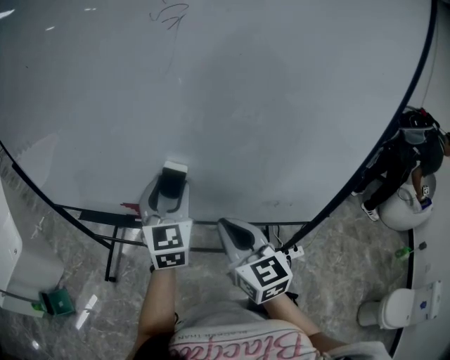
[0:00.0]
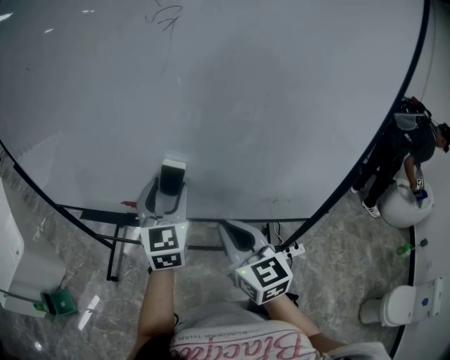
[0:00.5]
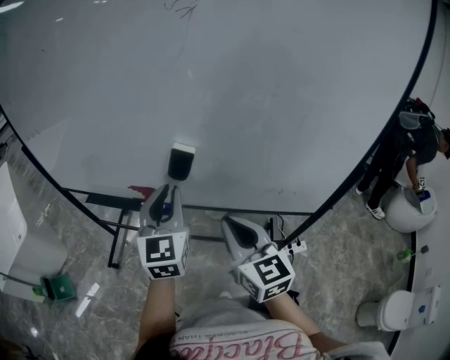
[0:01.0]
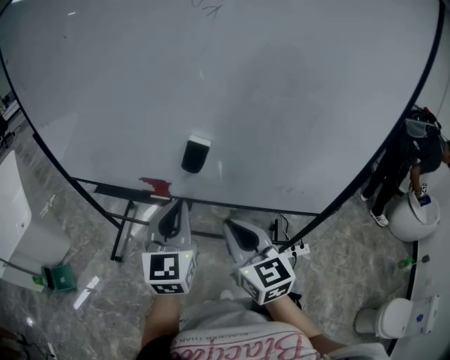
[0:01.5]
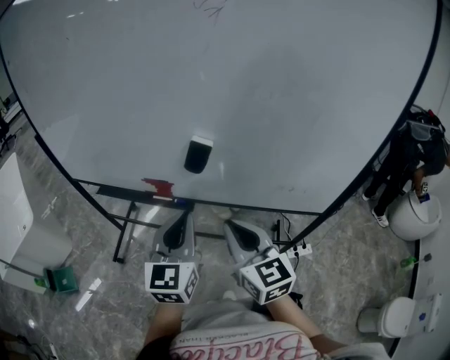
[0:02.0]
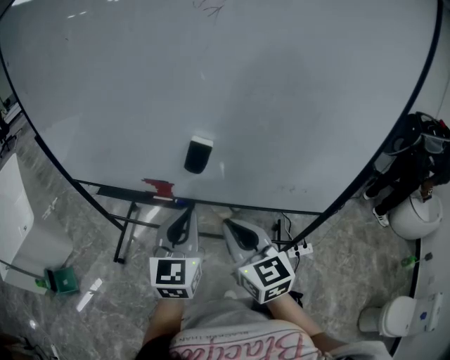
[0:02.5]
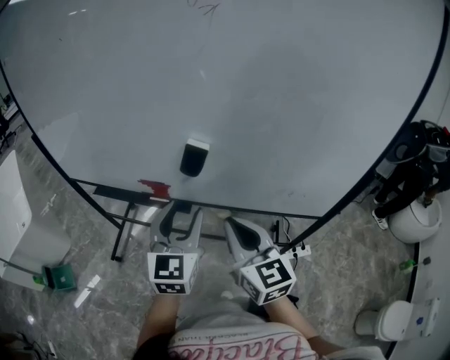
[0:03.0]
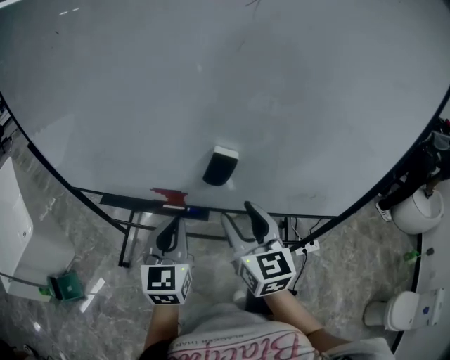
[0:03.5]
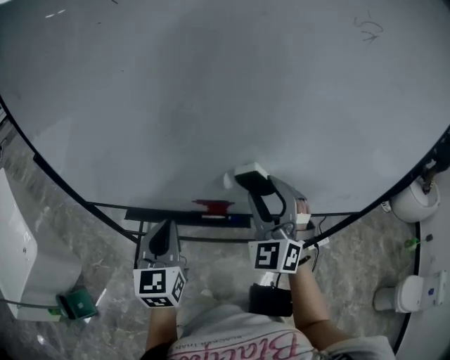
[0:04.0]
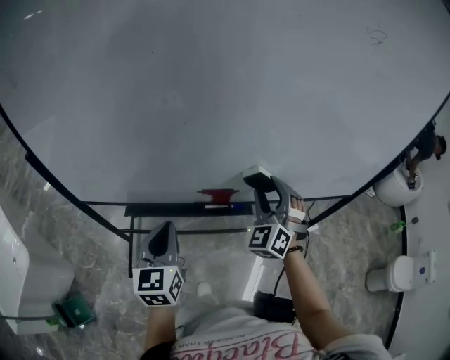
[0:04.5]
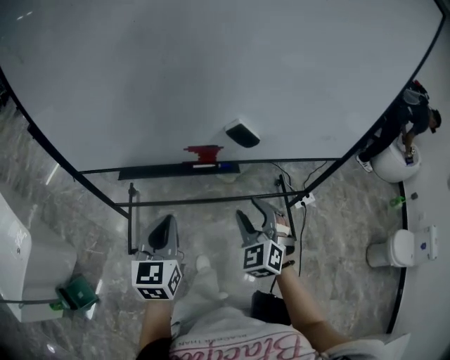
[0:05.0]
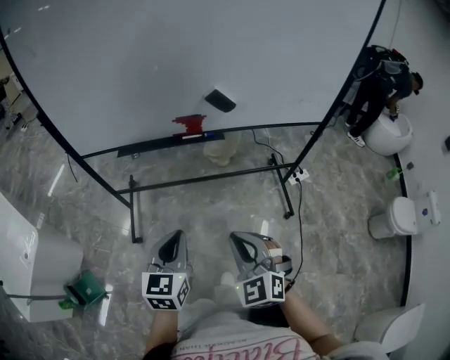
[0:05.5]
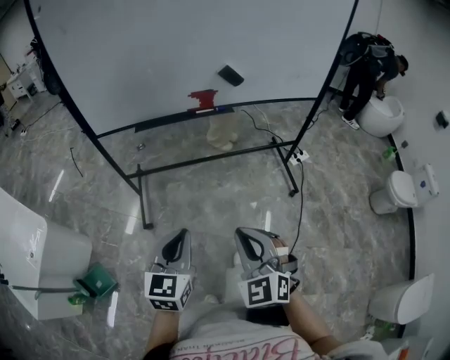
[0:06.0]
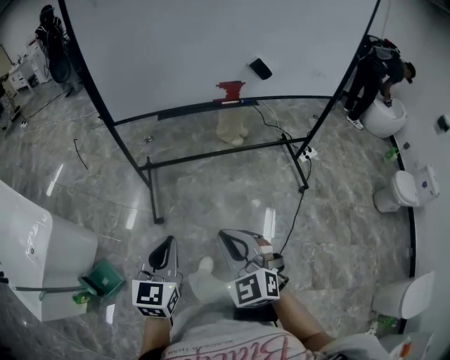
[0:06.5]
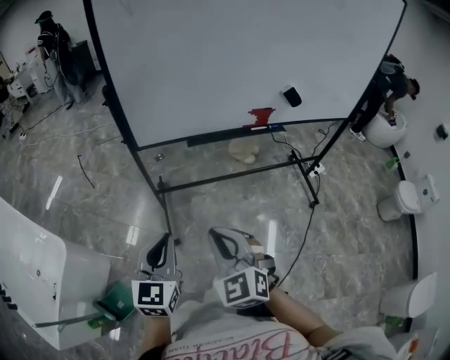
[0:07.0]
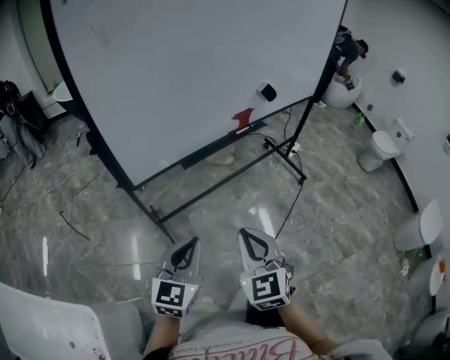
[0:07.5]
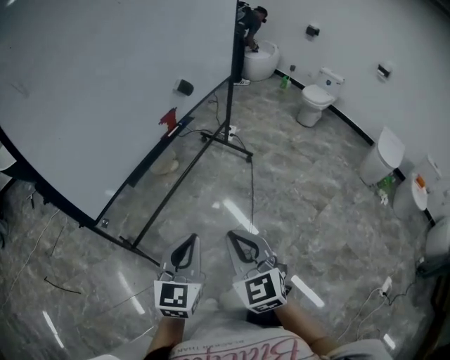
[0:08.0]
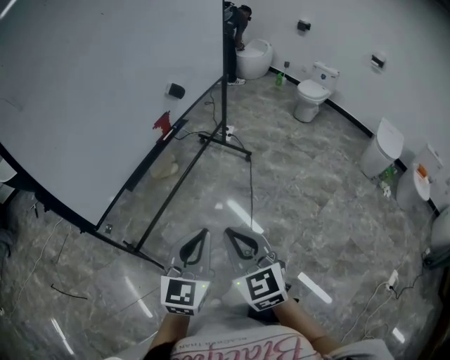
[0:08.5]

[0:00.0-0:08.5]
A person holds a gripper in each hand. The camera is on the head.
0:00.0 to 0:02.0: The right gripper ends up some 5 cm from where it was; the left gripper goes roughly 15 cm backward, and closes its fingers.
0:02.0 to 0:04.0: The right gripper heads forward and to the left, covering some 15 cm, twists approximately 50 degrees counterclockwise, seen from behind, and opens its fingers, while the left gripper shifts some 25 cm to the left and forward, and opens and closes again.
0:04.0 to 0:06.5: The pair of grippers is taken backward and to the left, about 50 cm. The left gripper turns by approximately 20 degrees. Meanwhile the right gripper changes its angle by roughly 30 degrees, and closes.
0:06.5 to 0:08.5: The left gripper changes its angle by some 60 degrees. Meanwhile the right gripper moves approximately 15 cm, and swivels some 60 degrees.

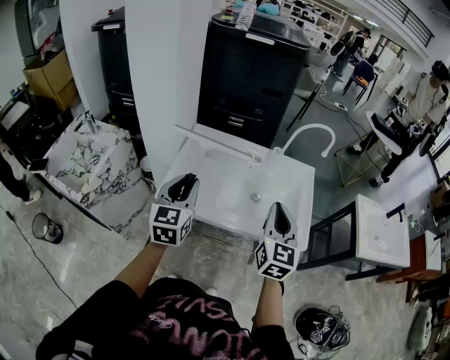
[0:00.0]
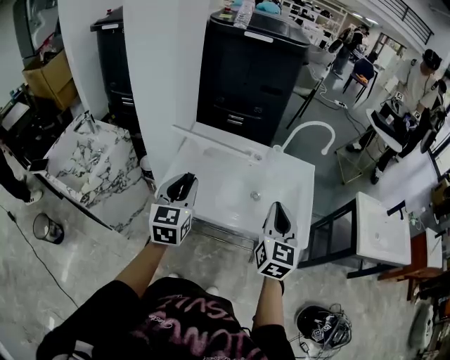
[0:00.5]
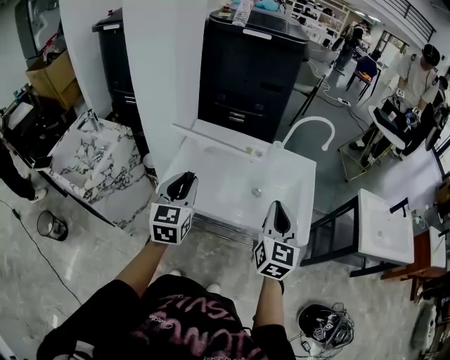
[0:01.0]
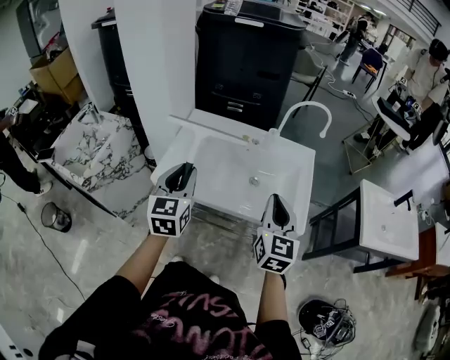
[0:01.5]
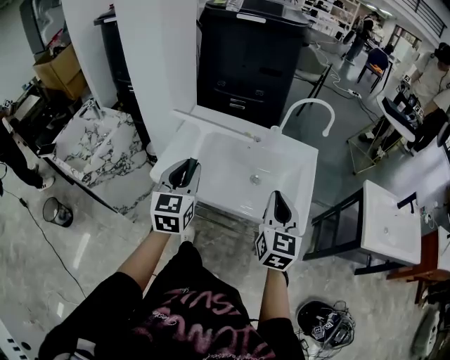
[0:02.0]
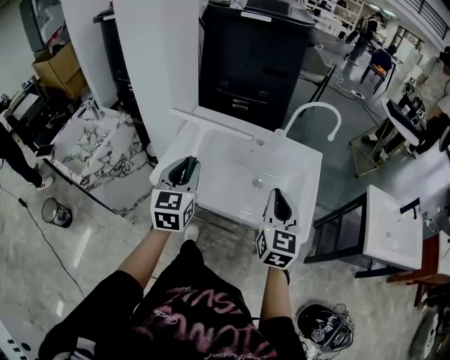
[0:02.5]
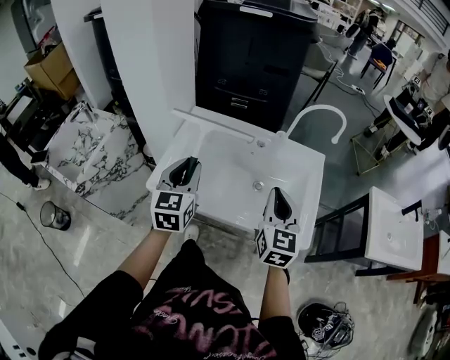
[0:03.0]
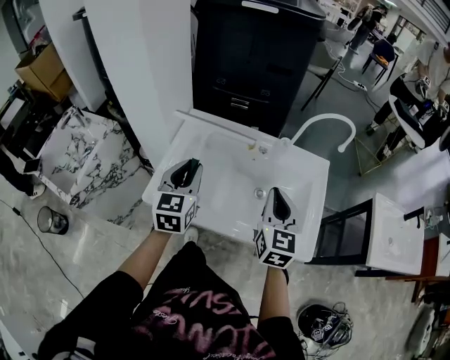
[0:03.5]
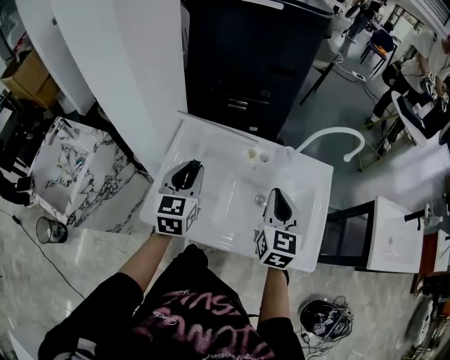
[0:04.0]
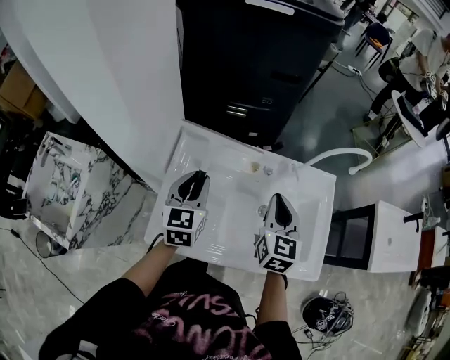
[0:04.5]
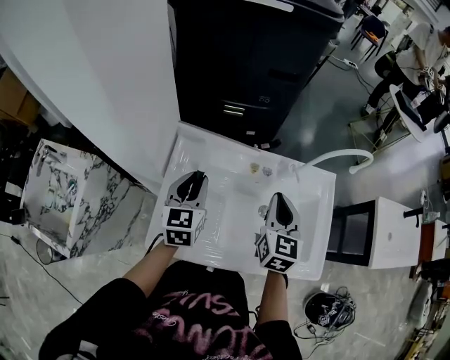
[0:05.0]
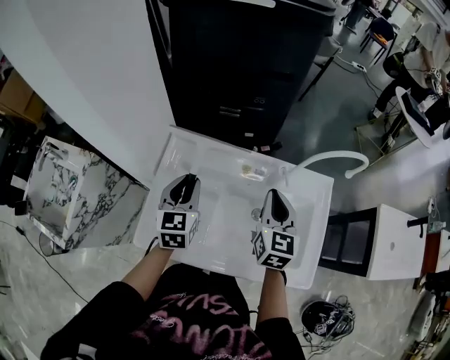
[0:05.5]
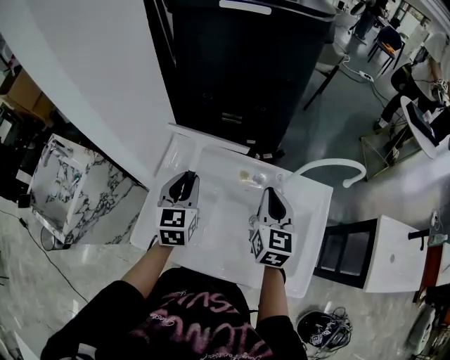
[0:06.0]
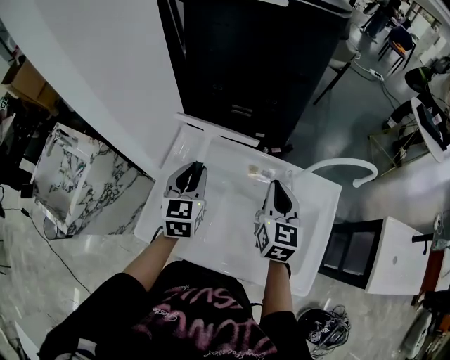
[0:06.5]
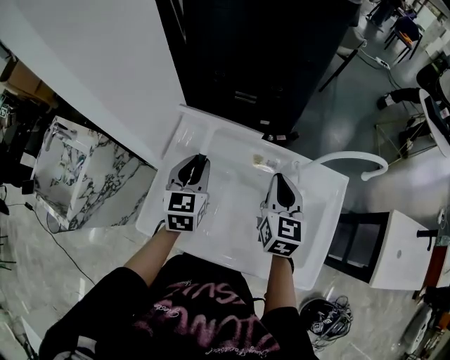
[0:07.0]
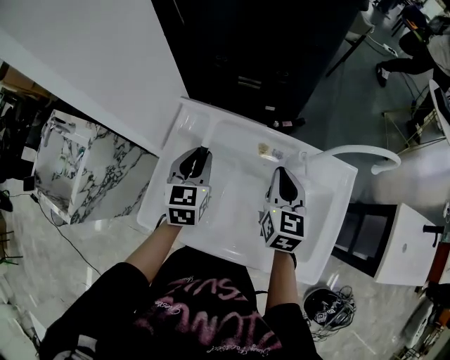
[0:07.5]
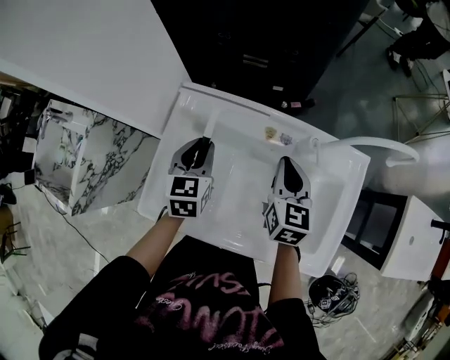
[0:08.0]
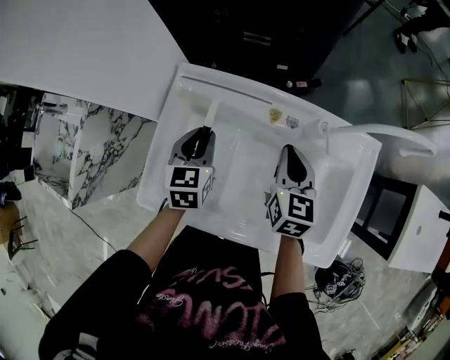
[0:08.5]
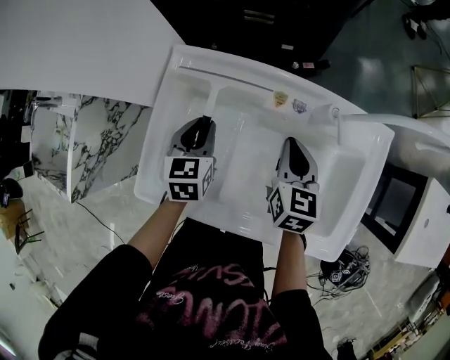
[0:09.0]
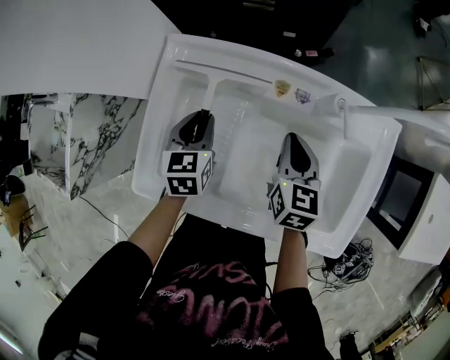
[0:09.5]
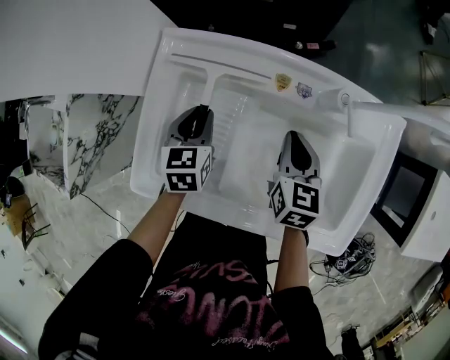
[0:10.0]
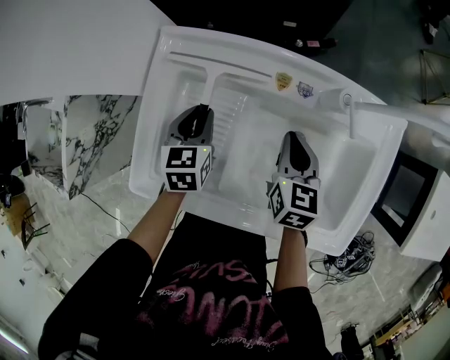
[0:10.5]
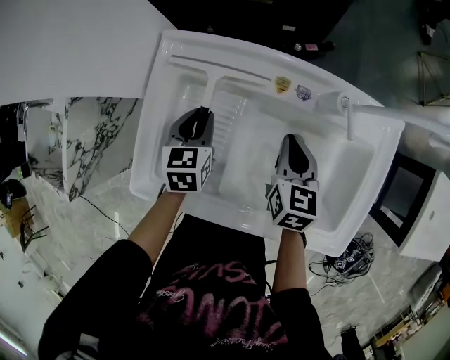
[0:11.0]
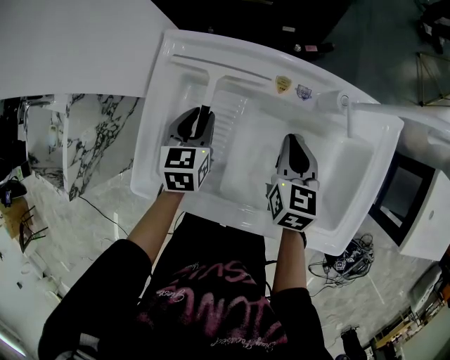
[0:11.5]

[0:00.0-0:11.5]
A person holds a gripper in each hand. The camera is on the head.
0:00.0 to 0:02.0: Both grippers move to the right, about 5 cm.
0:02.0 to 0:04.0: Both grippers travel together forward, about 20 cm.
0:04.0 to 0:06.0: The two grippers go some 10 cm forward.
0:06.0 to 0:07.5: The grippers both shift downward by about 5 cm.
0:07.5 to 0:09.5: Both grippers travel together downward, about 15 cm.
0:09.5 to 0:11.5: There are only small adjustments of the grippers.

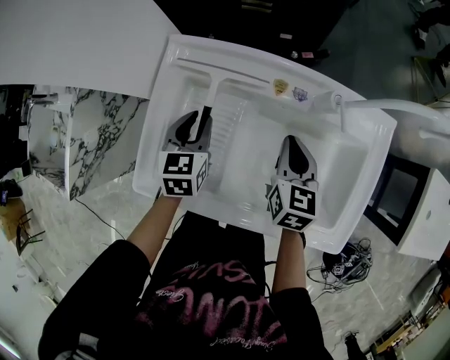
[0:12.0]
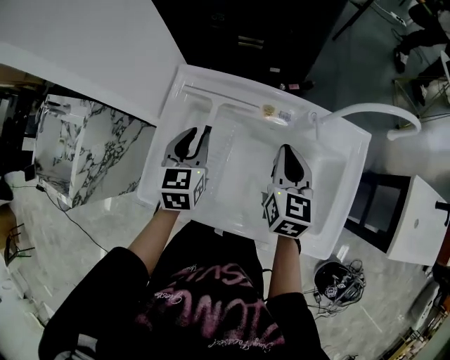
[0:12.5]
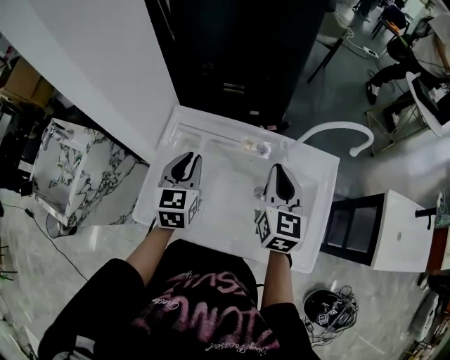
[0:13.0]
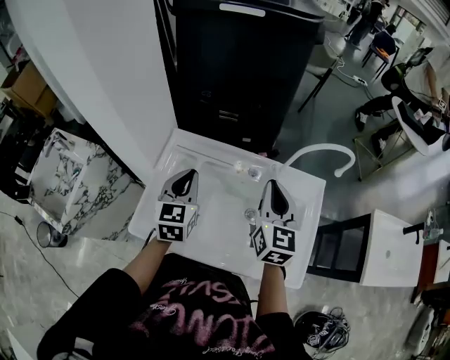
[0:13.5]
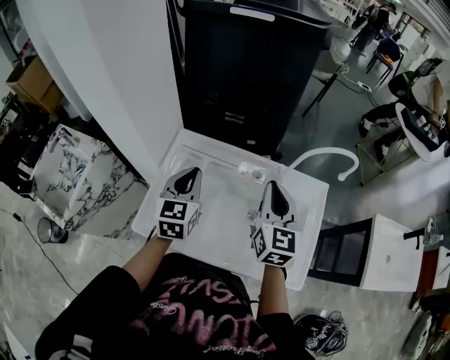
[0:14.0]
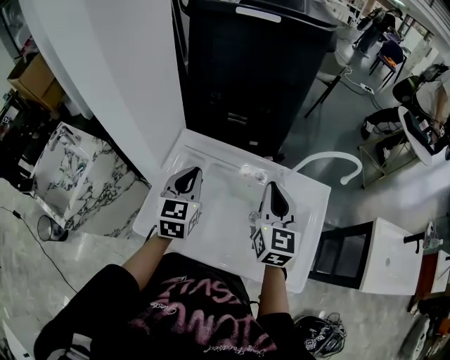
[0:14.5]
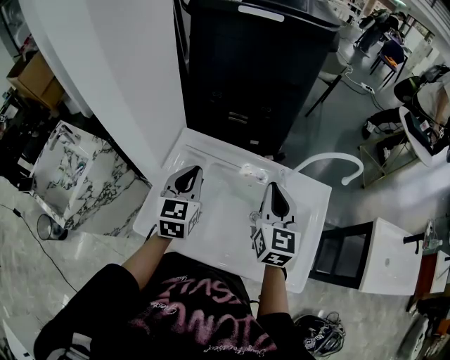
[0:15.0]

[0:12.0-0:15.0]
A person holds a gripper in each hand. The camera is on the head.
0:12.0 to 0:13.5: Both grippers move upward, some 20 cm. The left gripper closes its fingers. The right gripper rotates roughly 30 degrees.
0:13.5 to 0:15.0: There are only small adjustments of the grippers.

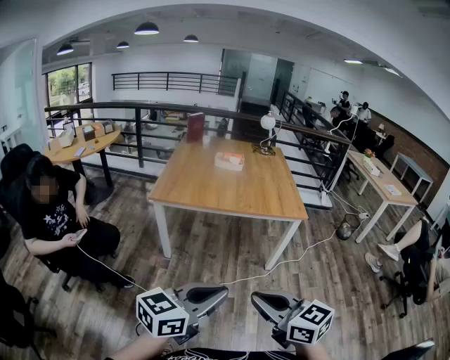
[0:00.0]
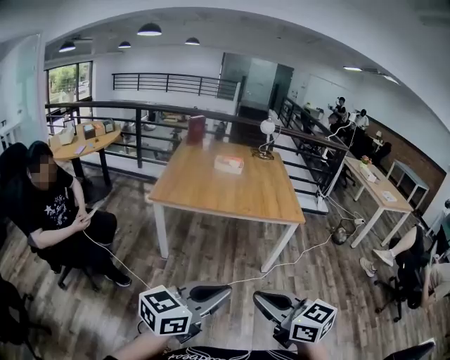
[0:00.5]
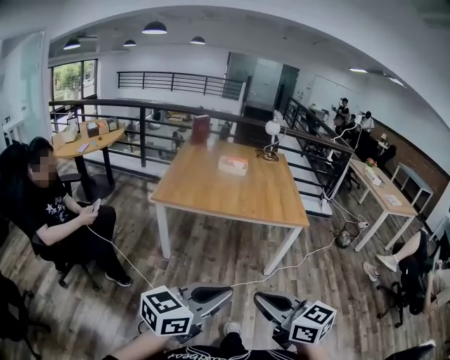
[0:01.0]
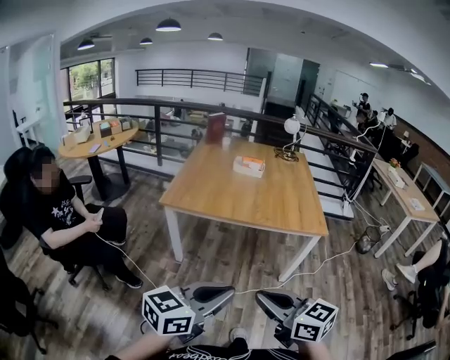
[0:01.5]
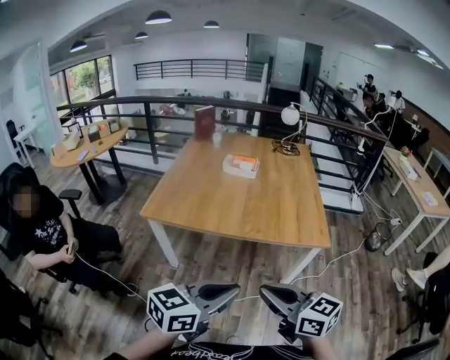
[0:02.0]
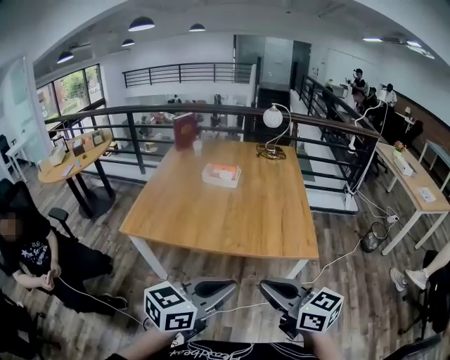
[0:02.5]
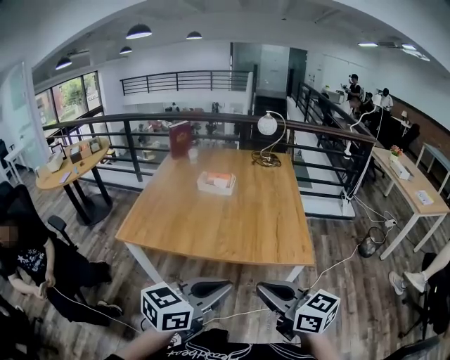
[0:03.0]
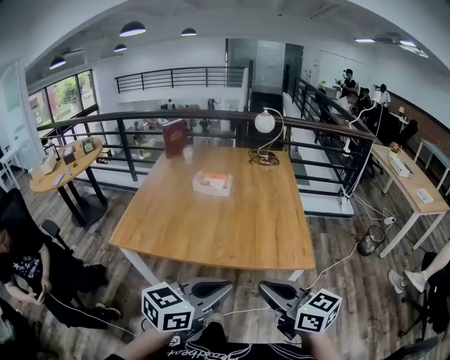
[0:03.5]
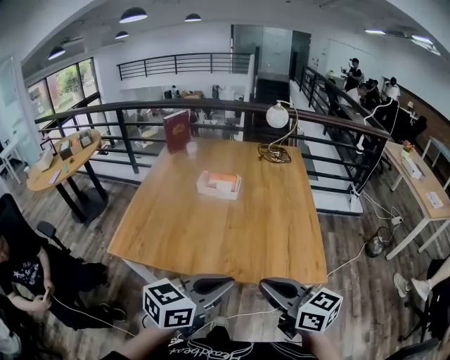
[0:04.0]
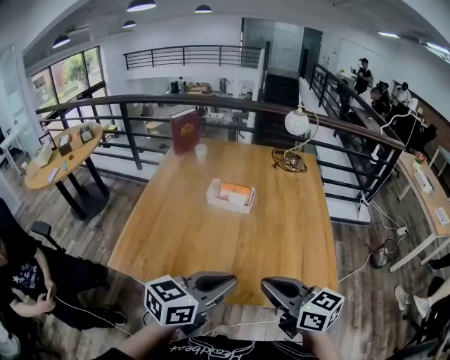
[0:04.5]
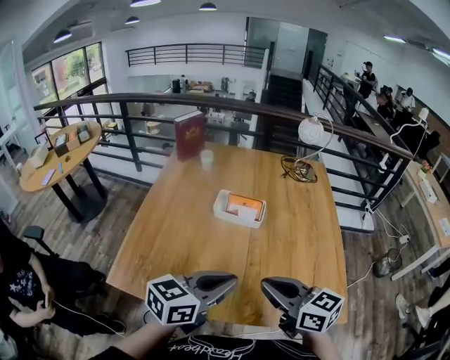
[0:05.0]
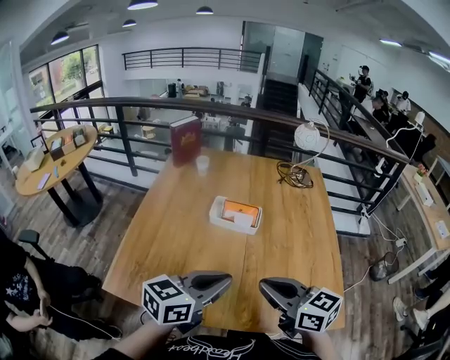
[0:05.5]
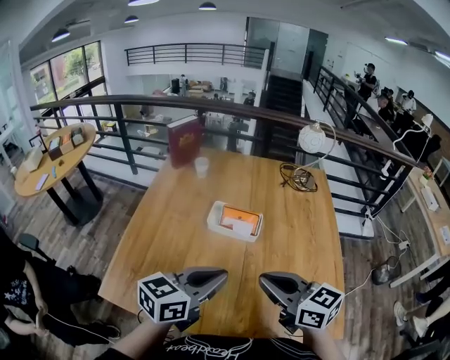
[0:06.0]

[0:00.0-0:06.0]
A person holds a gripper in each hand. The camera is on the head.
0:00.0 to 0:02.0: Both grippers travel together forward, roughly 30 cm.
0:02.0 to 0:04.0: Both grippers move forward, some 30 cm.
0:04.0 to 0:06.0: The two grippers go some 30 cm forward.
